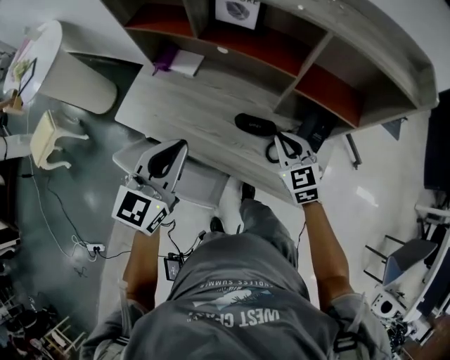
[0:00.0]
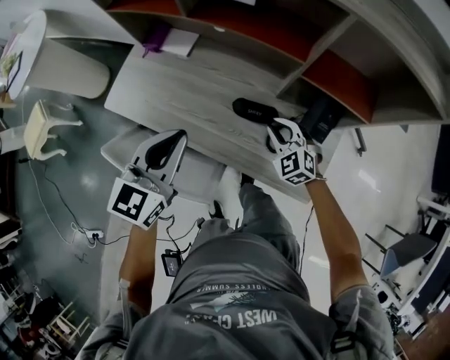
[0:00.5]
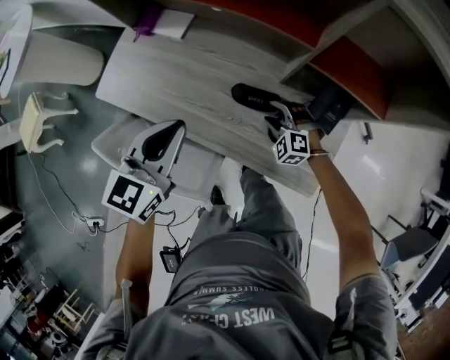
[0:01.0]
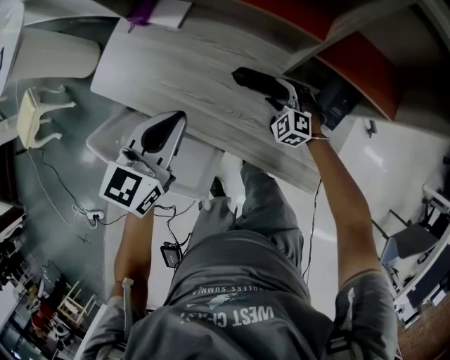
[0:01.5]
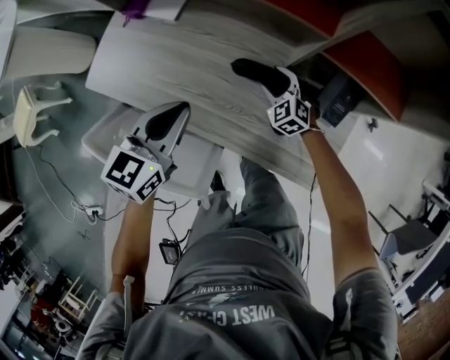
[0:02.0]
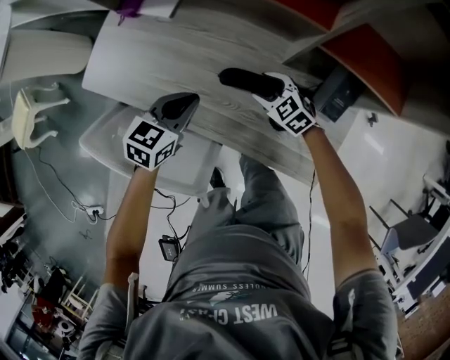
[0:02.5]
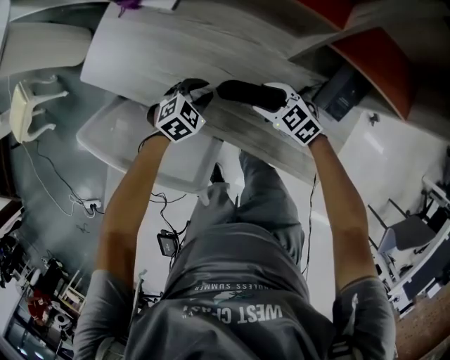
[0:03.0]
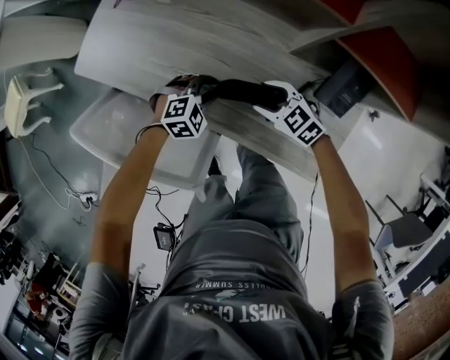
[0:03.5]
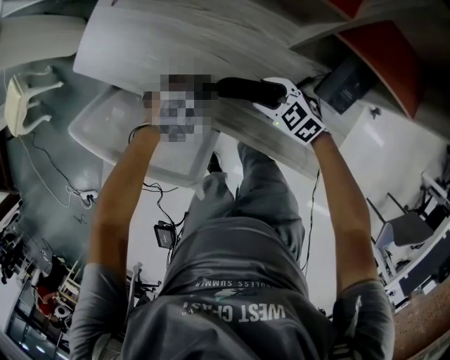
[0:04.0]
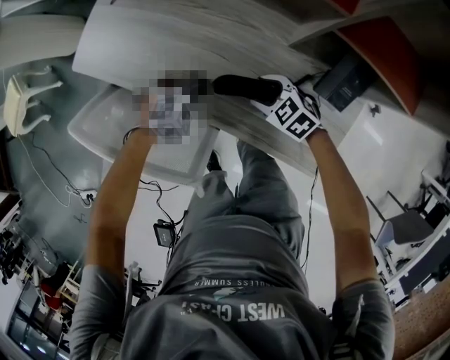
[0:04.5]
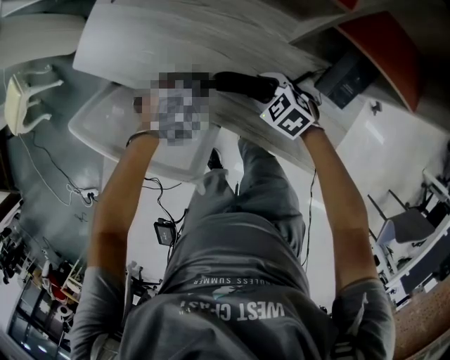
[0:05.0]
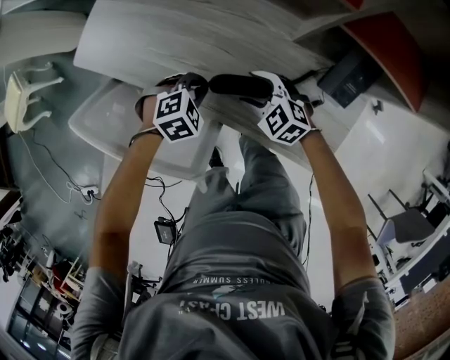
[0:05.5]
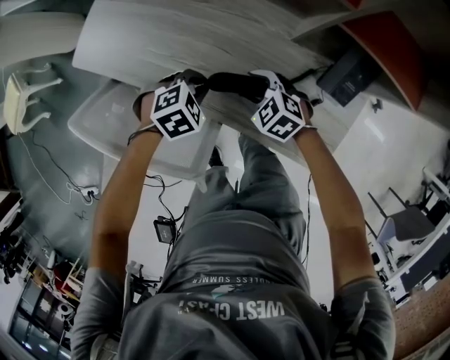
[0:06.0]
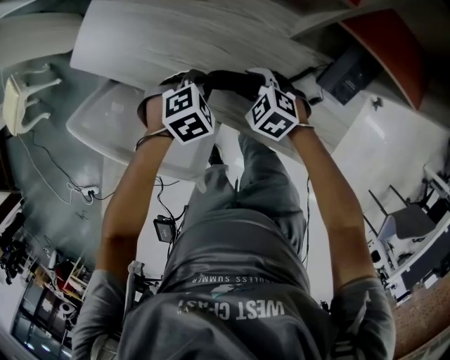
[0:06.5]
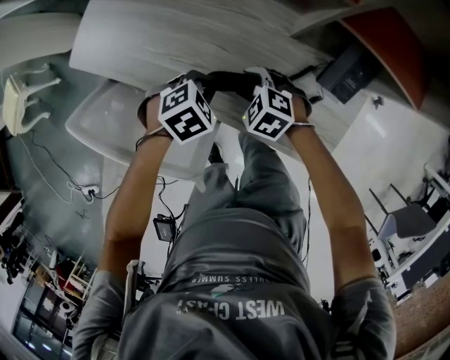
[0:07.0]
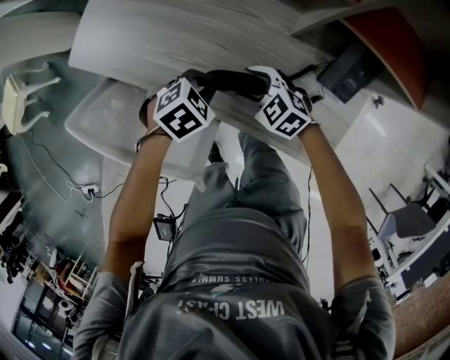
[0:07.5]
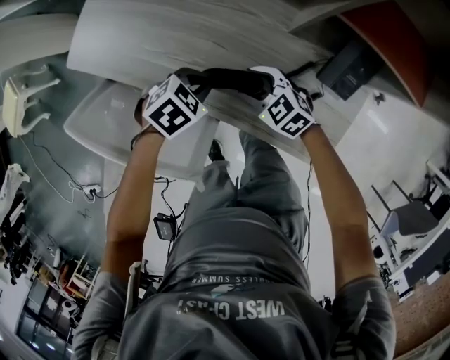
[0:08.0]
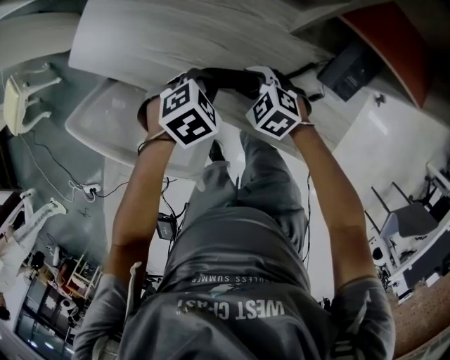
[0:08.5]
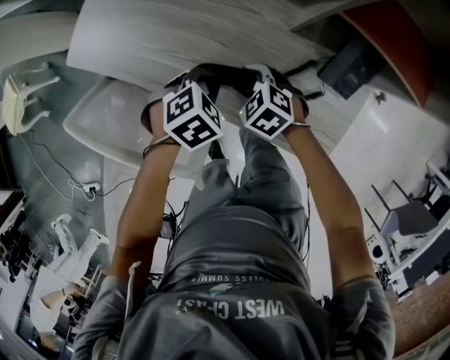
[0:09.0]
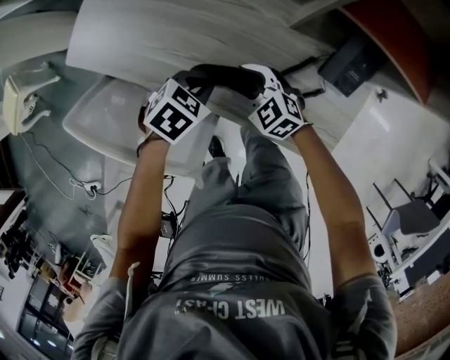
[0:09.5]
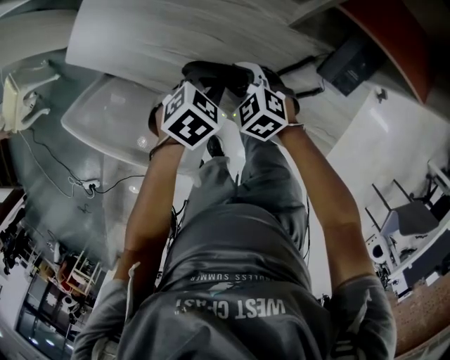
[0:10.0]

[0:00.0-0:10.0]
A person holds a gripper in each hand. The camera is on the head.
0:00.0 to 0:02.0: The left gripper heads downward and forward, covering roughly 20 cm. Meanwhile the right gripper is displaced downward and forward by roughly 25 cm, swivels approximately 30 degrees, and opens its fingers.
0:02.0 to 0:04.0: The left gripper moves downward, about 25 cm, and rotates around the line of its fingers by approximately 50 degrees, clockwise from behind; the right gripper changes place by about 10 cm, and changes its angle by roughly 30 degrees.
0:04.0 to 0:06.0: The grippers stay close to where they were, moving slightly.
0:06.0 to 0:08.0: The grippers make only small movements.
0:08.0 to 0:10.0: The grippers make only small movements.

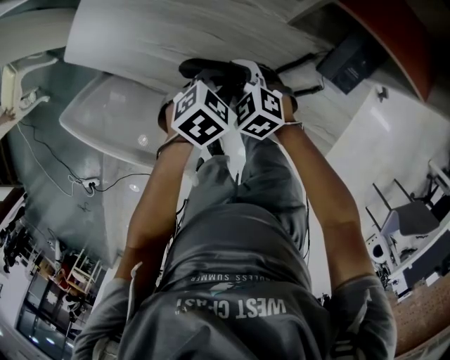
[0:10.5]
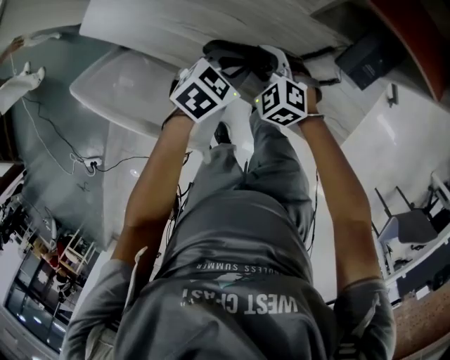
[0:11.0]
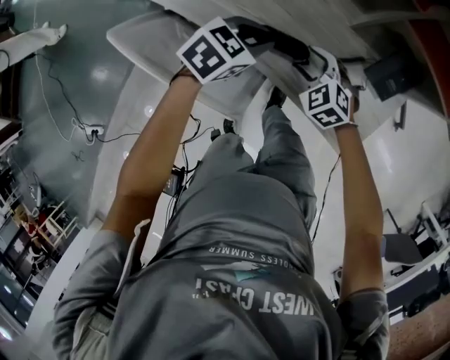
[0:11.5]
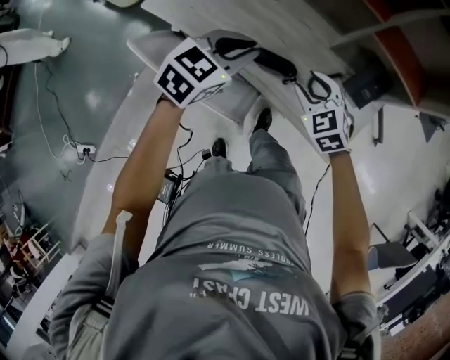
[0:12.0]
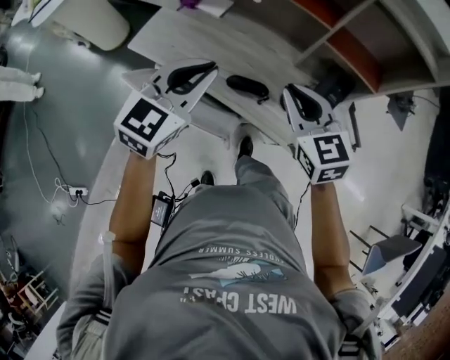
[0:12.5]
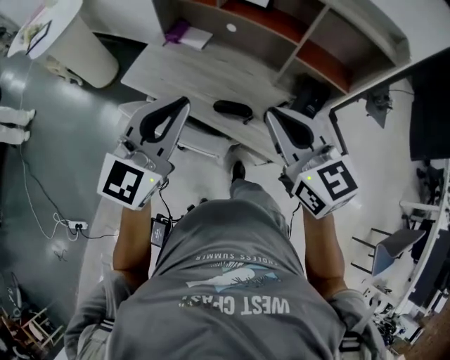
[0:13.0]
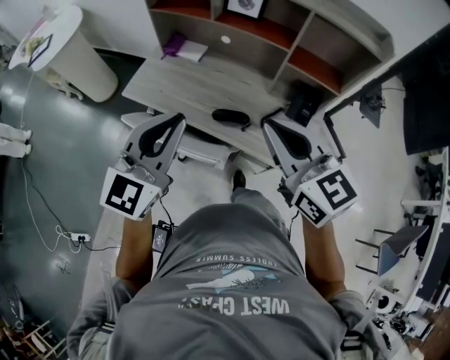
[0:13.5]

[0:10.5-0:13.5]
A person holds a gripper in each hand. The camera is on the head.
0:10.5 to 0:12.0: The left gripper heads upward and to the left, covering roughly 25 cm, and tilts its fingers some 30 degrees upward. The right gripper goes some 15 cm upward.
0:12.0 to 0:13.5: Both grippers travel together upward and backward, about 30 cm. The left gripper tilts its fingers roughly 30 degrees upward, while the right gripper tilts its fingers about 30 degrees upward, and closes.

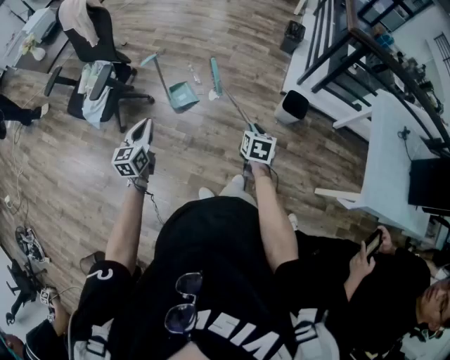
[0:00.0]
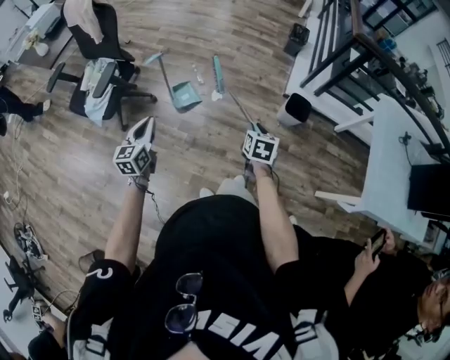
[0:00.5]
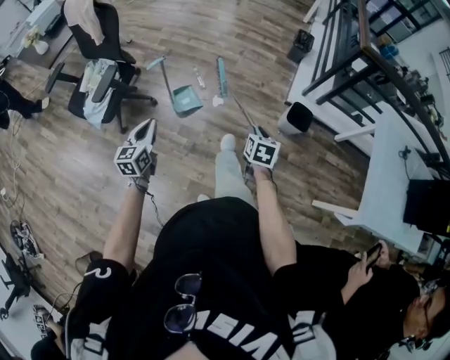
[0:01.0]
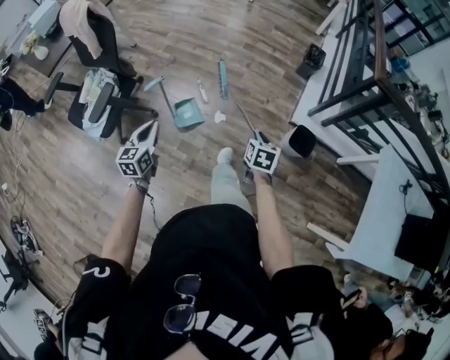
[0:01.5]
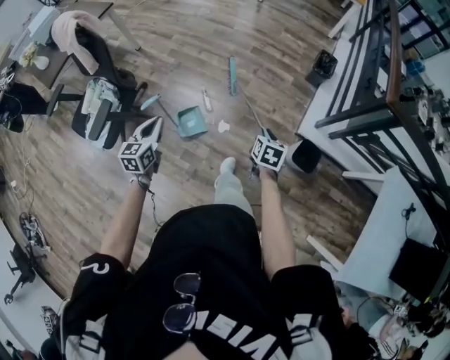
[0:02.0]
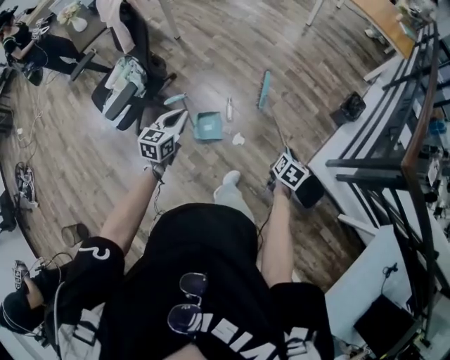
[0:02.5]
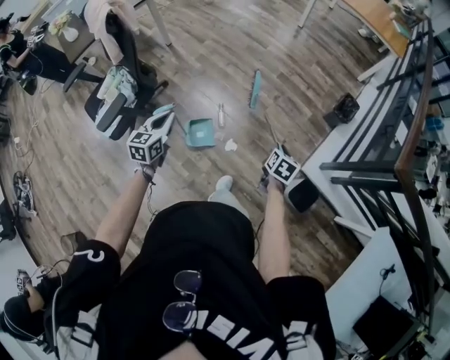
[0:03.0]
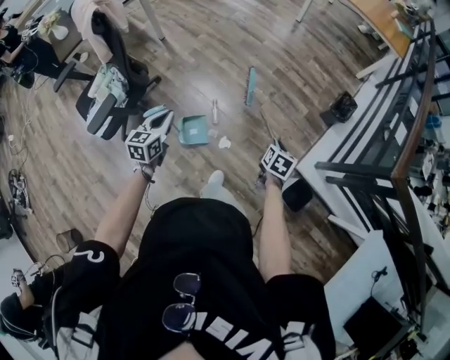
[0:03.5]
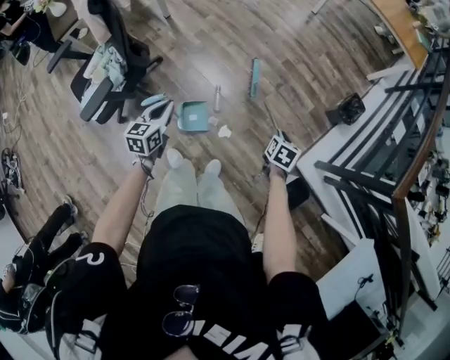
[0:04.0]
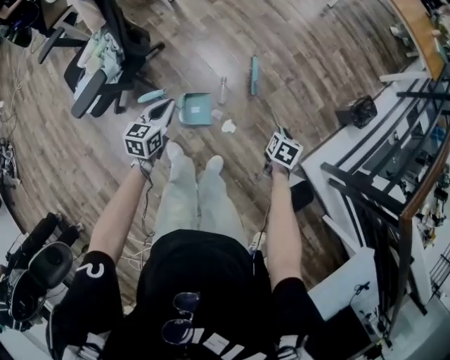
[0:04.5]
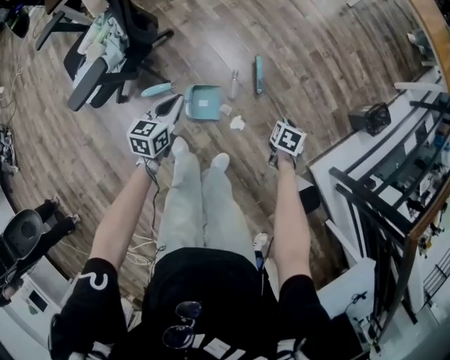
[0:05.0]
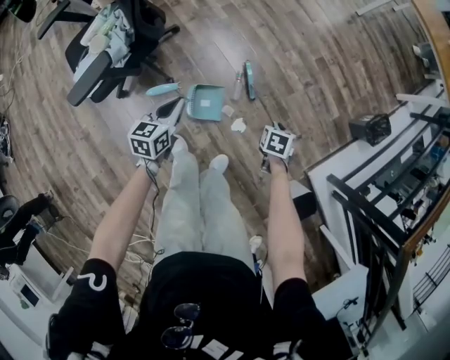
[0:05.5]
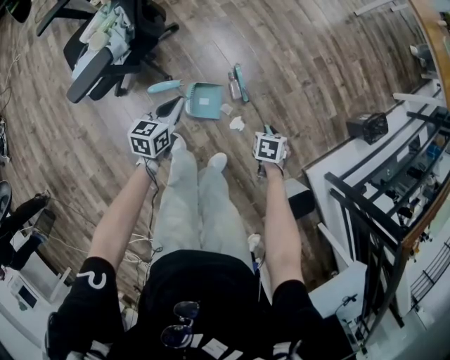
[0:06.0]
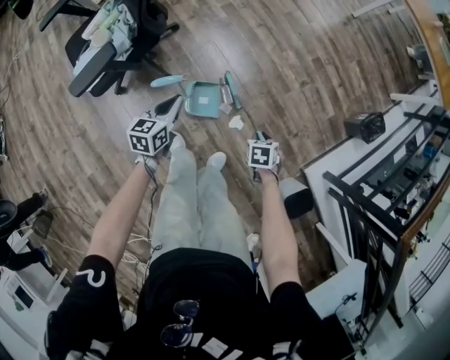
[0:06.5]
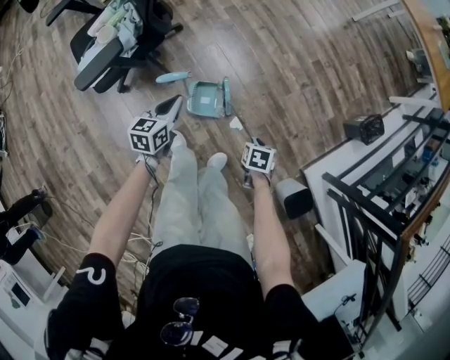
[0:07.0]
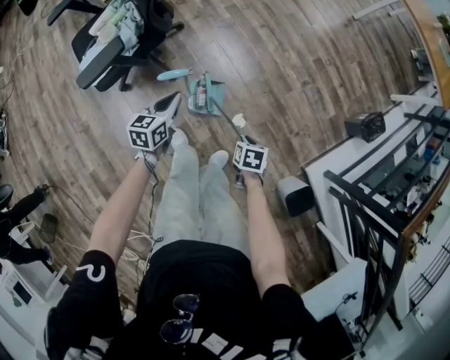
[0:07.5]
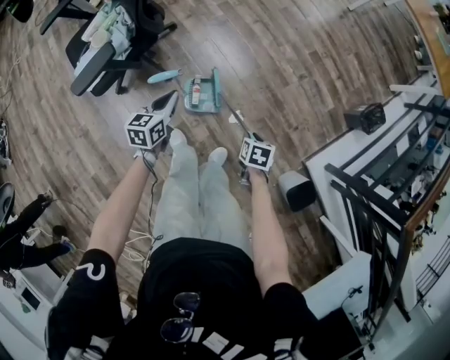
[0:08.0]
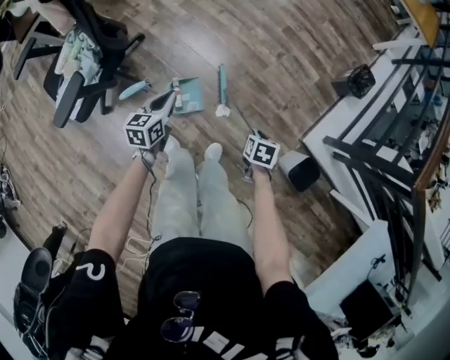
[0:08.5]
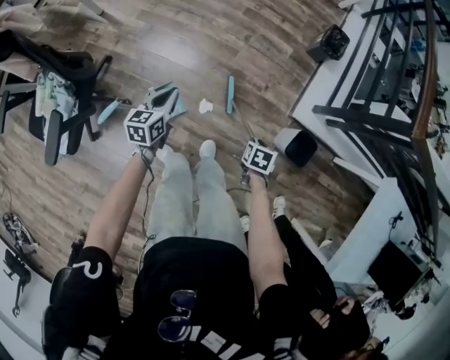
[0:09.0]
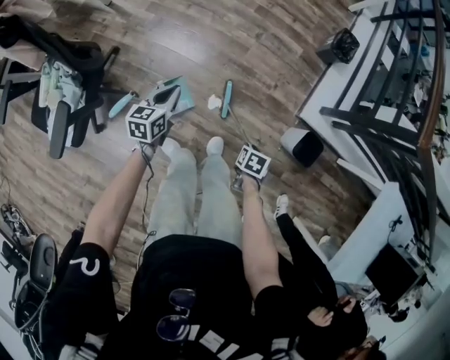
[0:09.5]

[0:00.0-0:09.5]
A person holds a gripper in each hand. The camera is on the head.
0:00.0 to 0:02.0: The grippers both shift forward by approximately 35 cm.
0:02.0 to 0:04.0: The left gripper moves forward and downward, some 20 cm. The right gripper heads forward, covering about 25 cm.
0:04.0 to 0:05.5: The grippers both shift downward and to the left by about 20 cm. The right gripper swivels about 20 degrees.
0:05.5 to 0:07.5: The left gripper heads backward, covering about 5 cm. The right gripper moves backward and to the left, approximately 15 cm.
0:07.5 to 0:09.5: The right gripper moves about 15 cm, and rotates some 40 degrees. Meanwhile the left gripper changes place by about 20 cm, and swivels about 30 degrees.

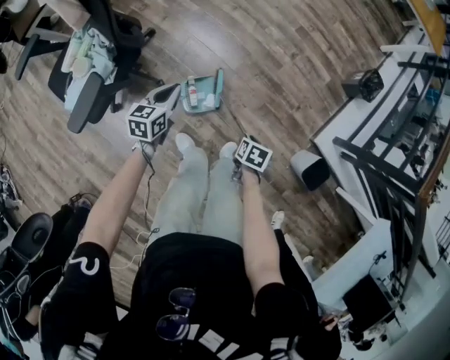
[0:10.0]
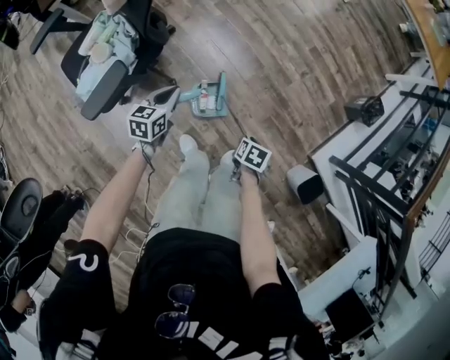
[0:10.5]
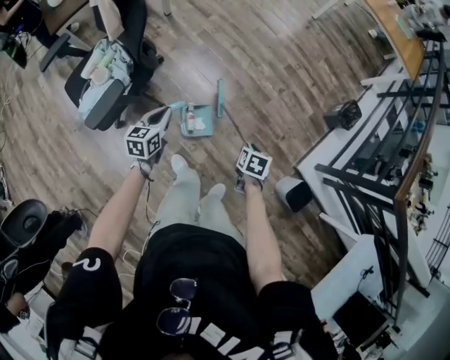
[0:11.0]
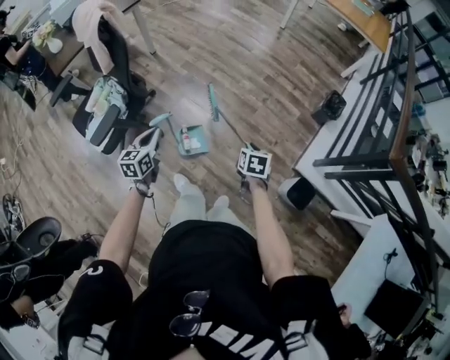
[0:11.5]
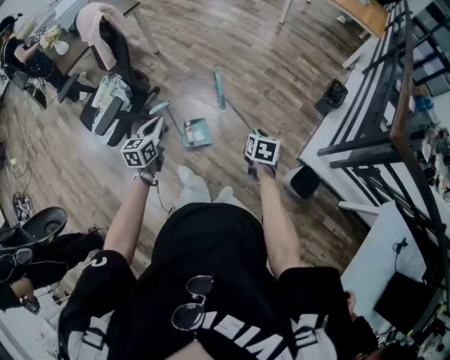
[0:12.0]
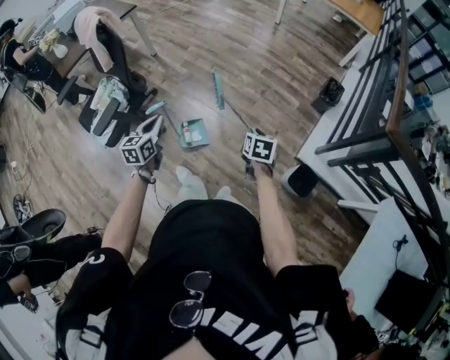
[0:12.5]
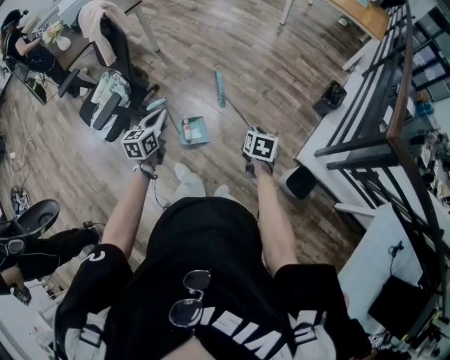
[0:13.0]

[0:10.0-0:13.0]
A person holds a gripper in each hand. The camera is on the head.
0:10.0 to 0:11.5: The right gripper travels upward by some 25 cm, and turns by about 20 degrees. Meanwhile the left gripper shifts roughly 25 cm upward and backward.
0:11.5 to 0:13.0: The right gripper heads to the right, covering some 10 cm, while the left gripper heads to the right and upward, covering approximately 10 cm.
